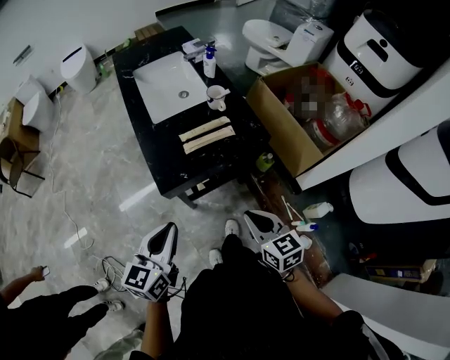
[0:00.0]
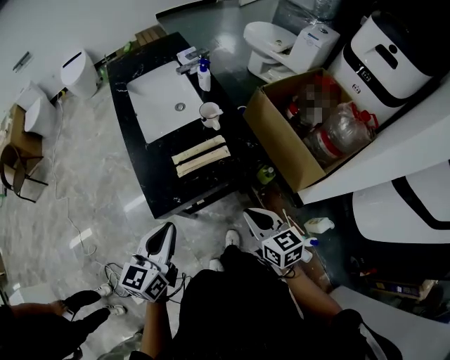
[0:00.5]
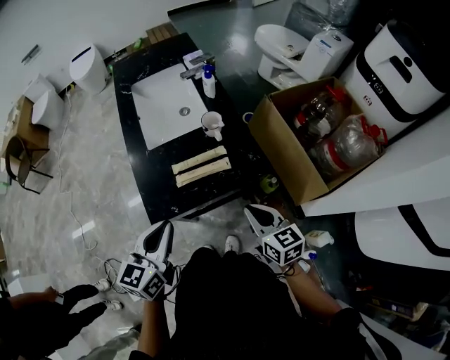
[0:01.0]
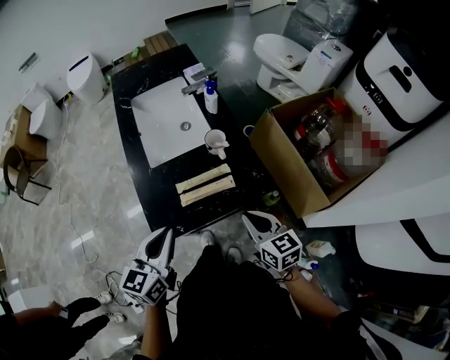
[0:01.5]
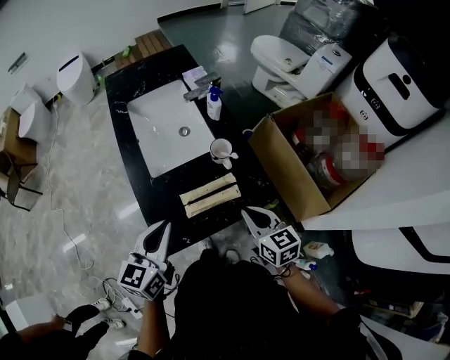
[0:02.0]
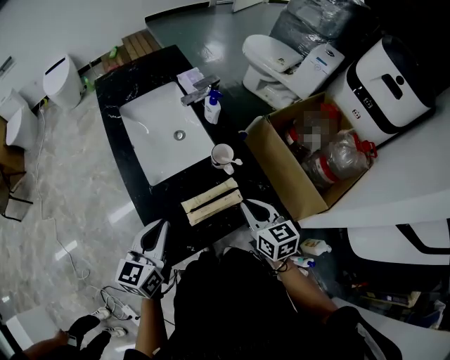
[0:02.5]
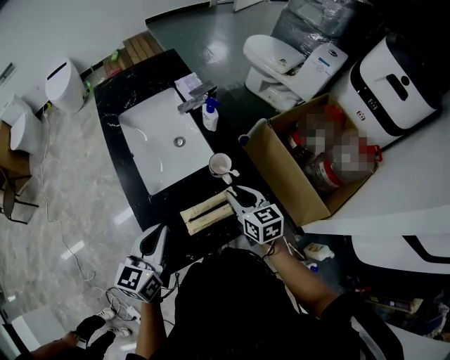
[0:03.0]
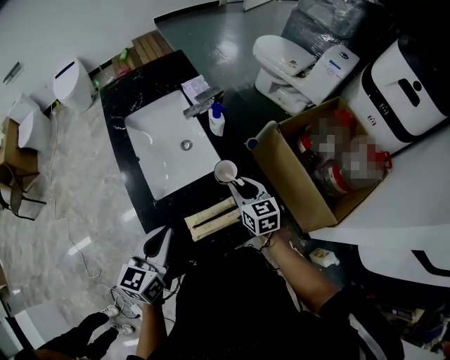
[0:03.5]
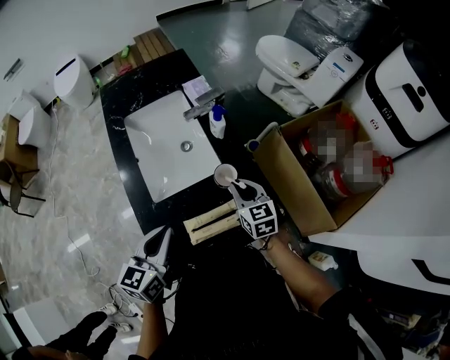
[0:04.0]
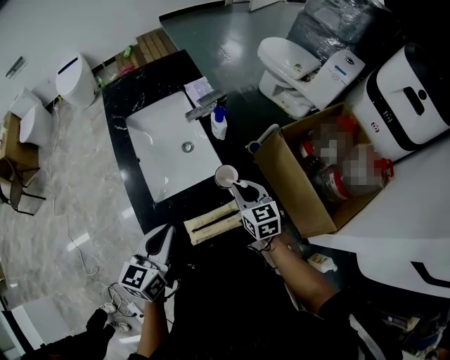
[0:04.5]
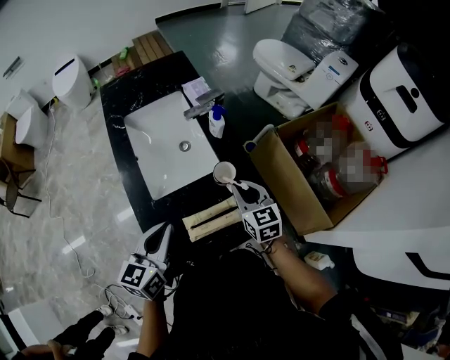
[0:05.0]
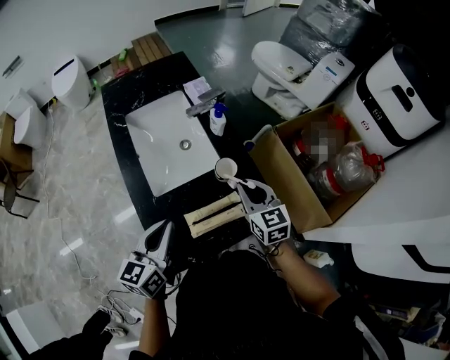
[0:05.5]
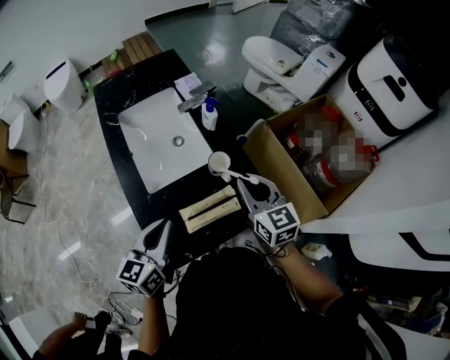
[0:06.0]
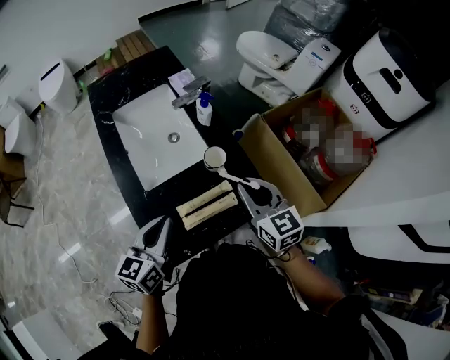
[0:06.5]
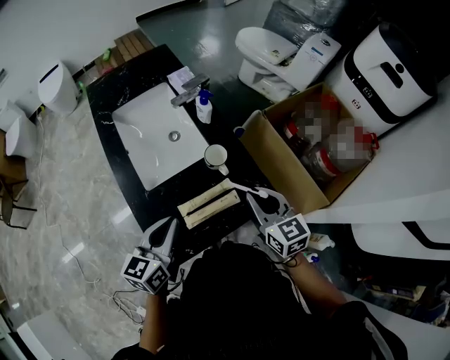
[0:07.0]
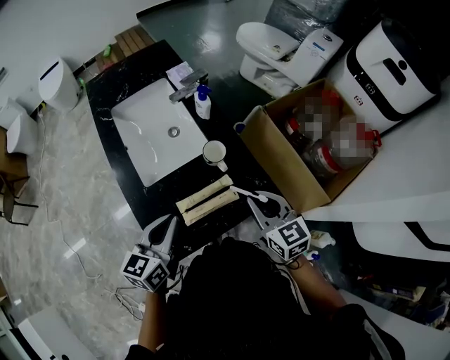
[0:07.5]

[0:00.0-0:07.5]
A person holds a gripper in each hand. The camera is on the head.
0:00.0 to 0:02.0: The grippers both shift forward by approximately 25 cm.
0:02.0 to 0:04.0: The right gripper travels forward by approximately 20 cm, while the left gripper goes some 10 cm forward.
0:04.0 to 0:05.5: The right gripper moves upward, approximately 5 cm.
0:05.5 to 0:07.5: The right gripper shifts about 10 cm backward.

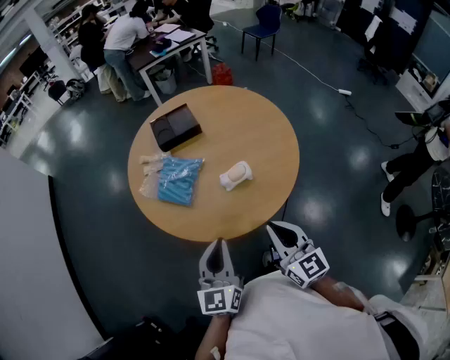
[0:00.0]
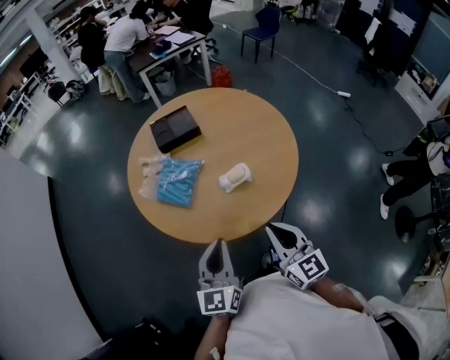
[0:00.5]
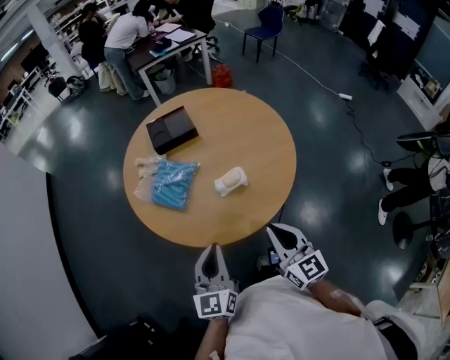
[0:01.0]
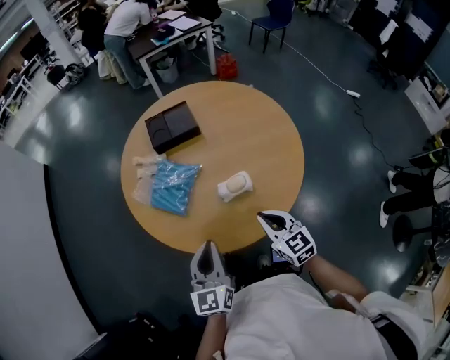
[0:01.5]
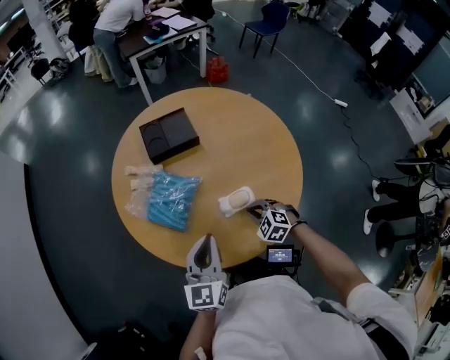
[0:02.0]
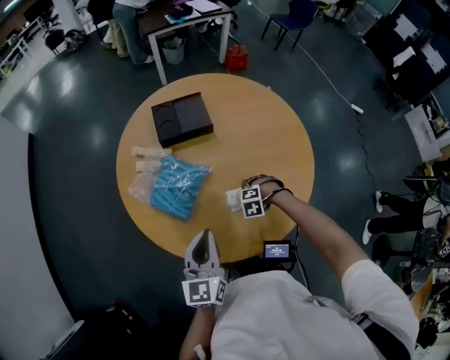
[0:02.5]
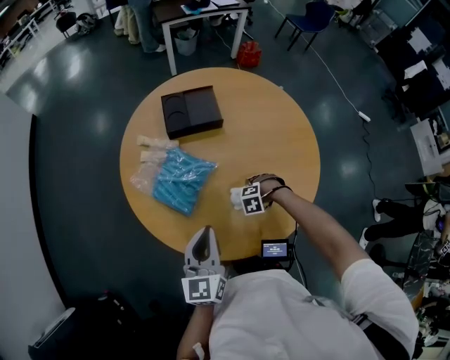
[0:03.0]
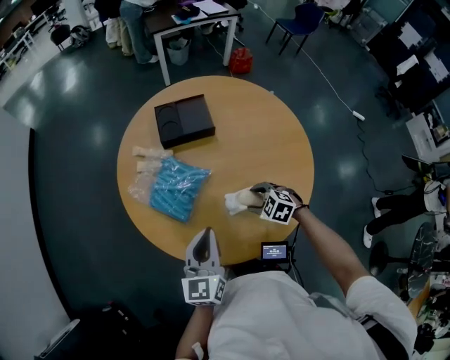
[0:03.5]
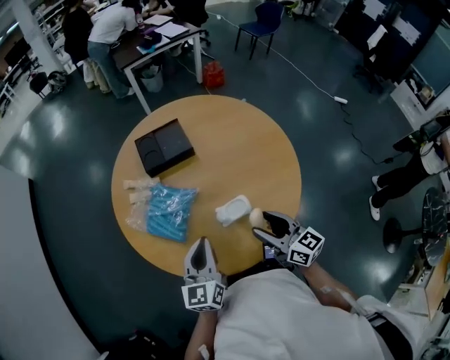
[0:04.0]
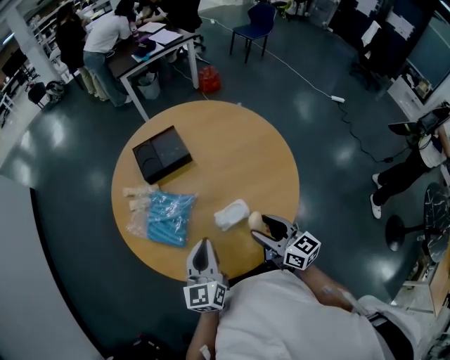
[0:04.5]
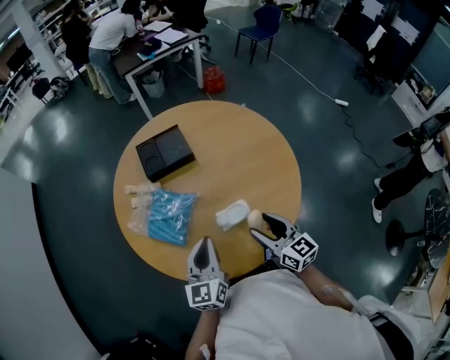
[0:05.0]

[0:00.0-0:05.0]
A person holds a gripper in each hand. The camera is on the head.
0:00.0 to 0:02.5: The right gripper goes about 35 cm downward, angles its fingers downward, by roughly 80 degrees, and opens up. The left gripper moves about 20 cm.
0:02.5 to 0:05.0: The left gripper changes place by approximately 5 cm, while the right gripper is displaced upward by approximately 25 cm, and tips its fingers upward by approximately 70 degrees.

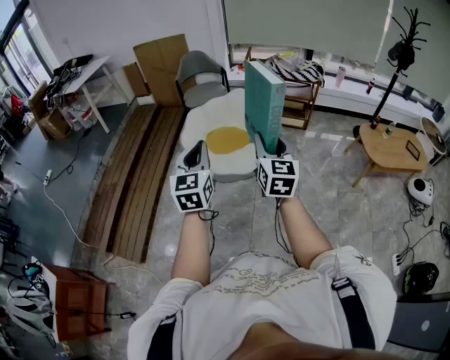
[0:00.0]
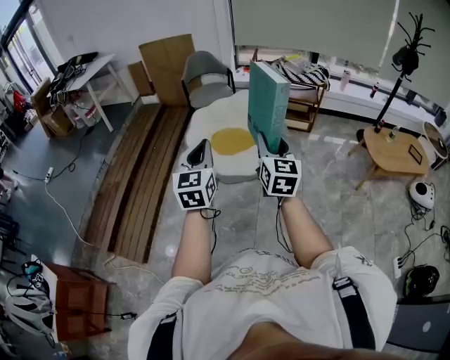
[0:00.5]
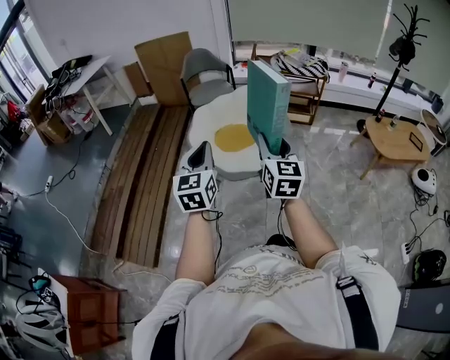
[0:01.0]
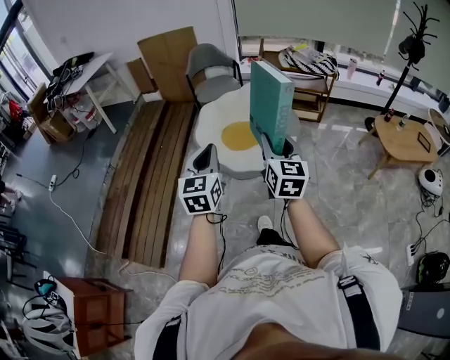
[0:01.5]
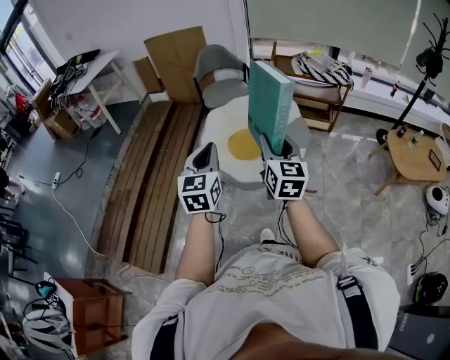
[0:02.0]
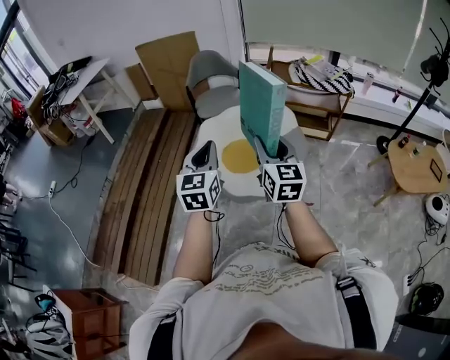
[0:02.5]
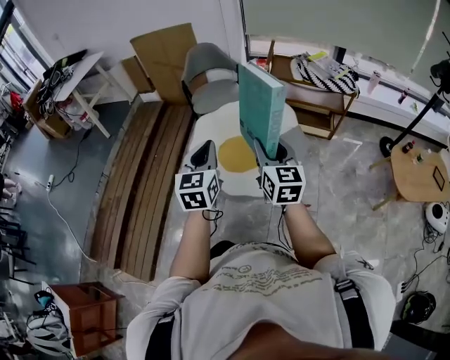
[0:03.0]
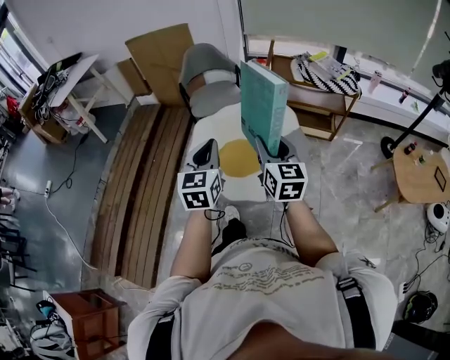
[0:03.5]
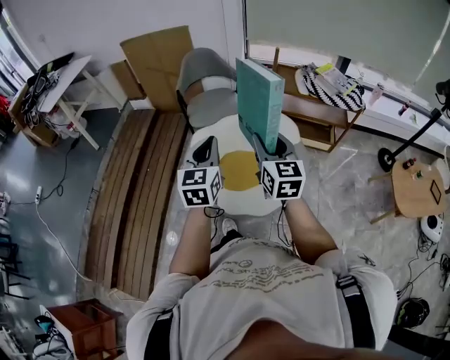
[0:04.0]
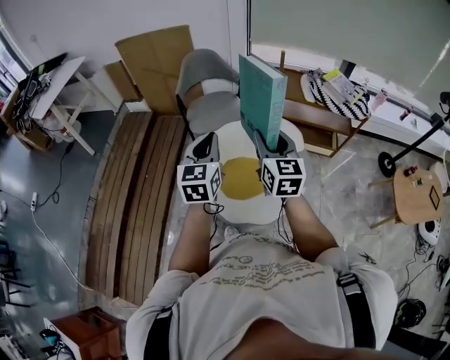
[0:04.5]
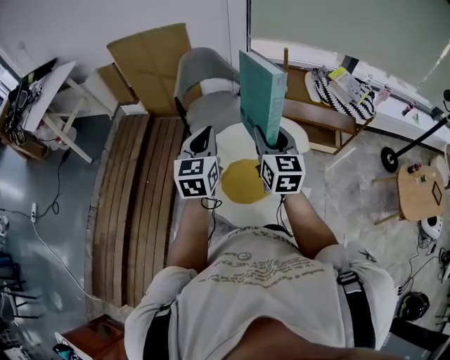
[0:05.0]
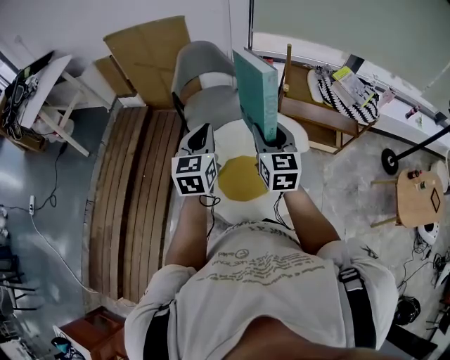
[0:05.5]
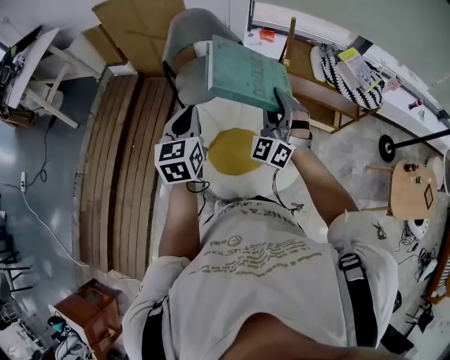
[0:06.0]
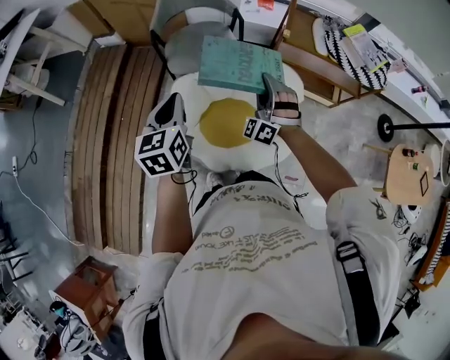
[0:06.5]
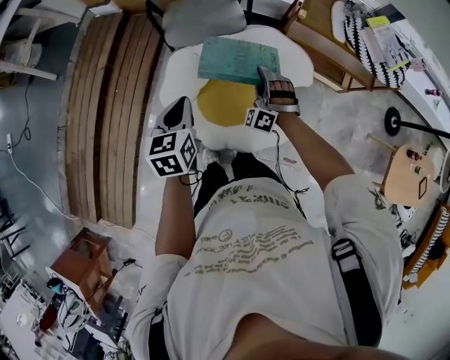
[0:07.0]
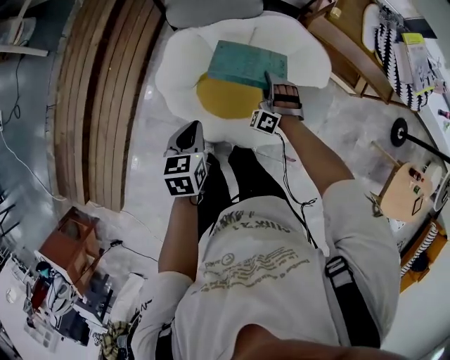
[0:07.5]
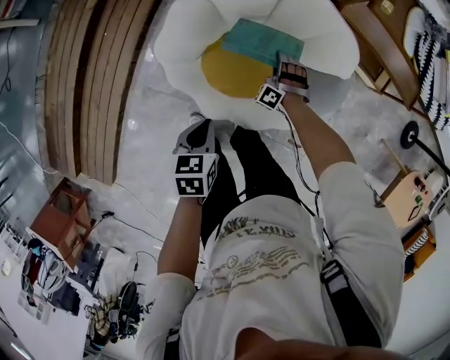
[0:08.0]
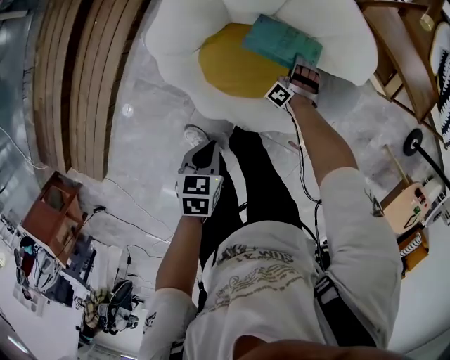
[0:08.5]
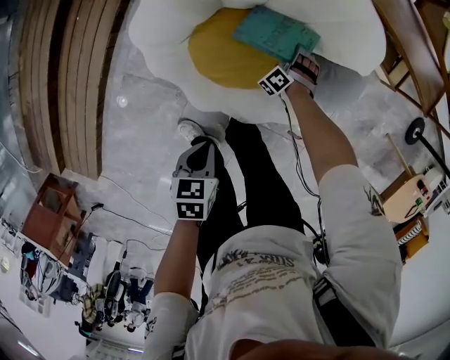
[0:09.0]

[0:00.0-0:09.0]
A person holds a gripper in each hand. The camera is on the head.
0:00.0 to 0:02.0: The two grippers go approximately 20 cm forward and to the left.
0:02.0 to 0:04.5: The two grippers travel together, forward, some 40 cm.
0:04.5 to 0:07.0: The left gripper heads downward and forward, covering about 20 cm, and changes its angle by about 30 degrees; the right gripper shifts about 35 cm downward and forward, and twists approximately 80 degrees counterclockwise, seen from behind.
0:07.0 to 0:09.0: The grippers both shift downward by some 40 cm. The right gripper rotates some 40 degrees, and opens its fingers. The left gripper changes its angle by about 40 degrees.

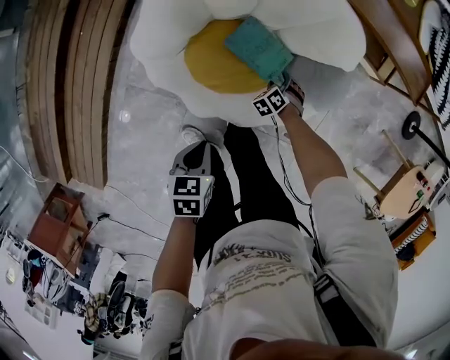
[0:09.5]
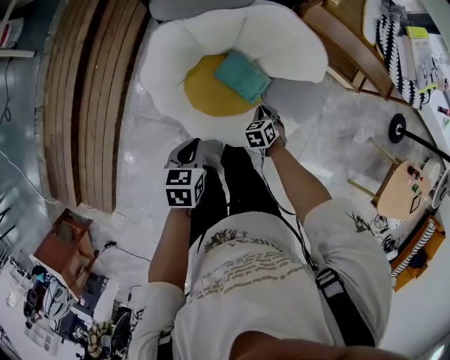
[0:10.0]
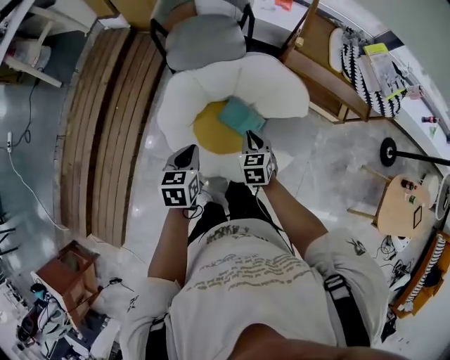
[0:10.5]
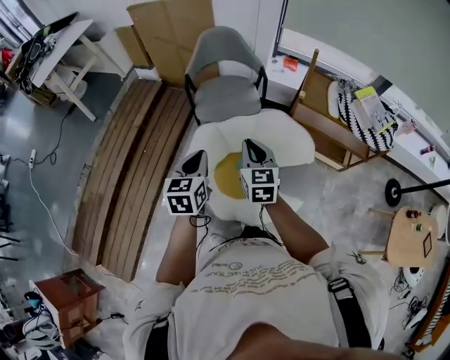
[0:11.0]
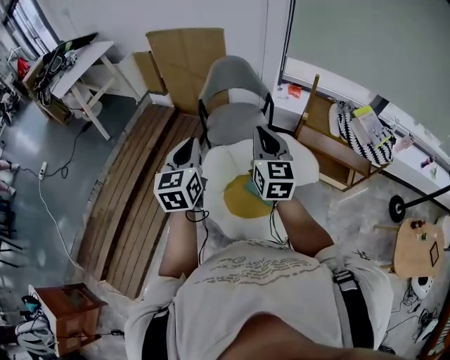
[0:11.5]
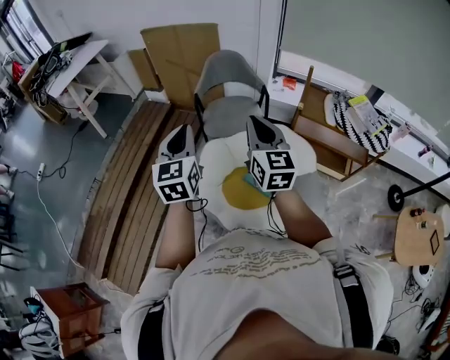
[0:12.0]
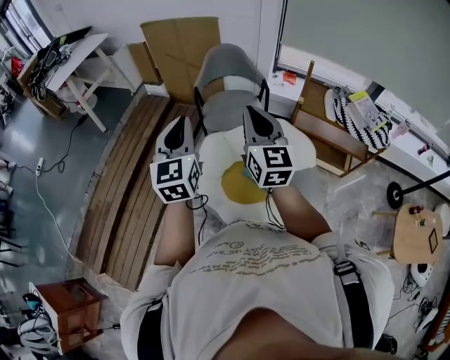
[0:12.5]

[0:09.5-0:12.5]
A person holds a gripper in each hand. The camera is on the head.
0:09.5 to 0:11.0: The right gripper goes some 60 cm upward, points its fingers about 50 degrees further upward, and closes up. The left gripper shifts about 35 cm upward, and tips its fingers upward by approximately 40 degrees.
0:11.0 to 0:12.5: Both grippers move upward, about 20 cm. The left gripper rotates approximately 30 degrees, while the right gripper changes its angle by approximately 20 degrees.

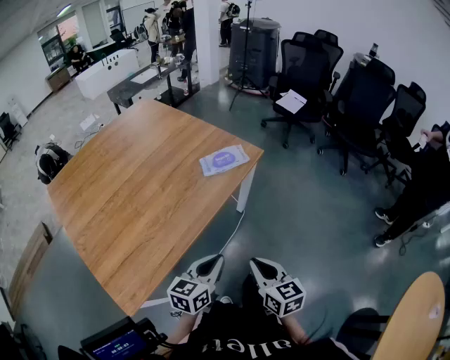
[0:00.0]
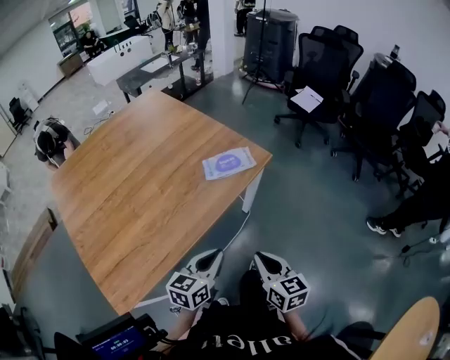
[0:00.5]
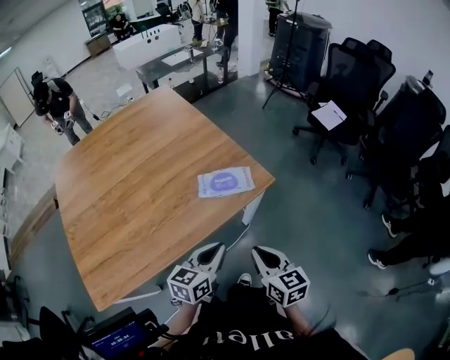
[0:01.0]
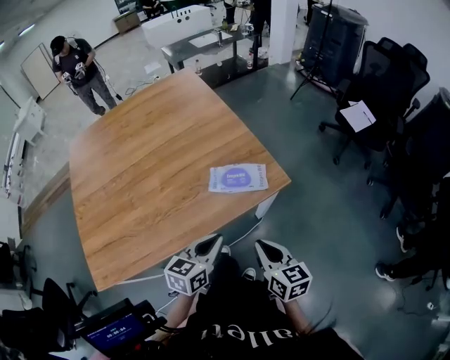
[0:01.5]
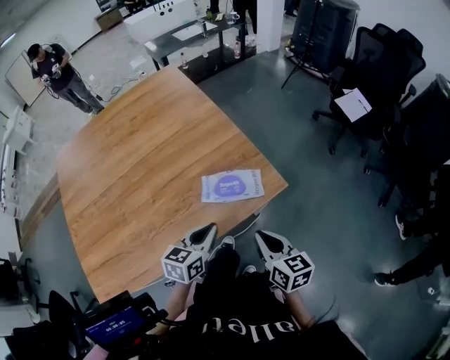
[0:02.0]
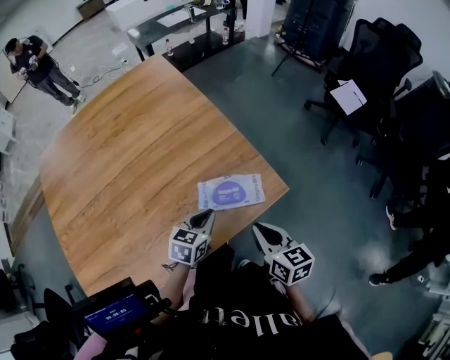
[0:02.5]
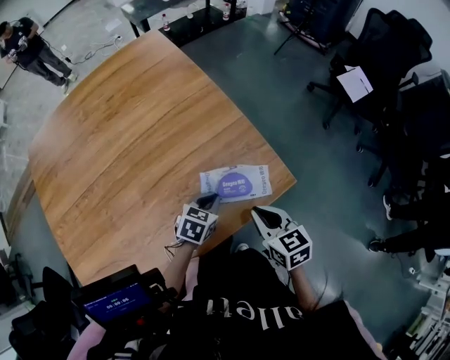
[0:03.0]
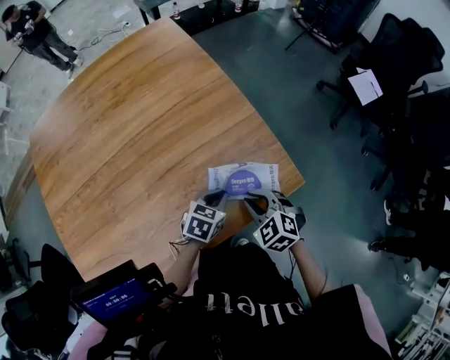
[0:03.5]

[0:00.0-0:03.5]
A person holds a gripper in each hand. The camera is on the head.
0:00.0 to 0:02.0: The two grippers go approximately 35 cm forward. The right gripper changes its angle by roughly 20 degrees. Meanwhile the left gripper turns by approximately 20 degrees.
0:02.0 to 0:03.5: The right gripper moves forward, to the left and downward, about 20 cm, and rolls counterclockwise, seen from behind, by about 50 degrees, while the left gripper travels forward and downward by roughly 15 cm, and rotates approximately 20 degrees.
